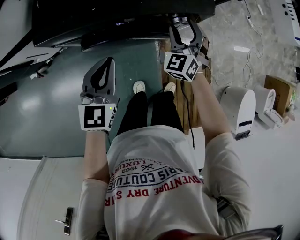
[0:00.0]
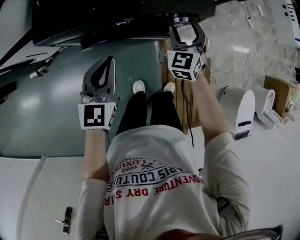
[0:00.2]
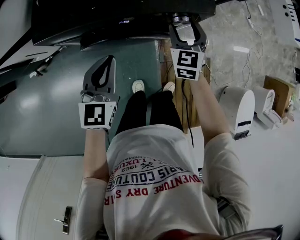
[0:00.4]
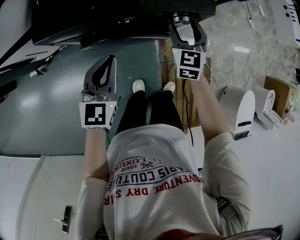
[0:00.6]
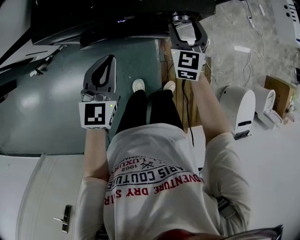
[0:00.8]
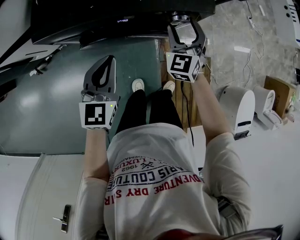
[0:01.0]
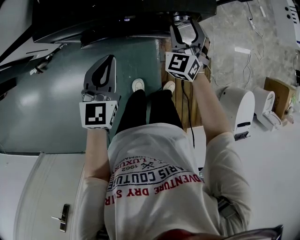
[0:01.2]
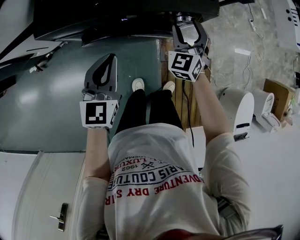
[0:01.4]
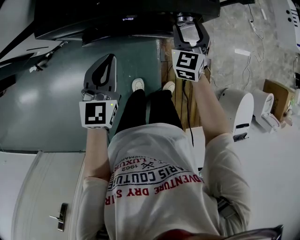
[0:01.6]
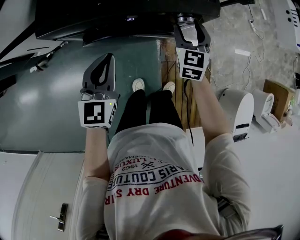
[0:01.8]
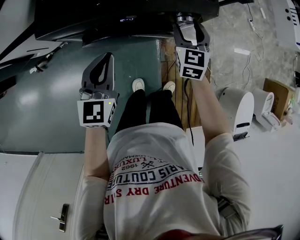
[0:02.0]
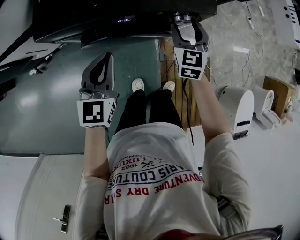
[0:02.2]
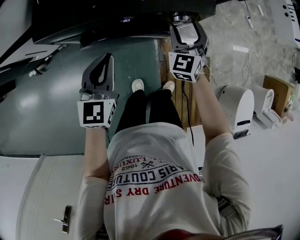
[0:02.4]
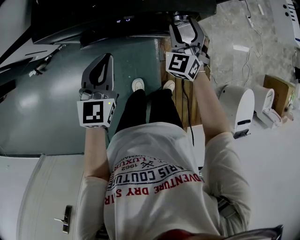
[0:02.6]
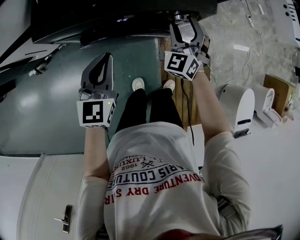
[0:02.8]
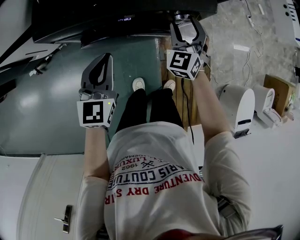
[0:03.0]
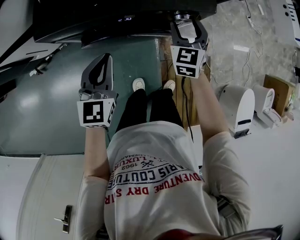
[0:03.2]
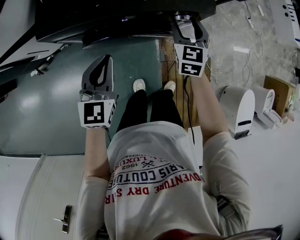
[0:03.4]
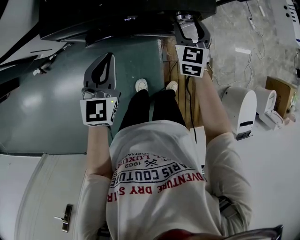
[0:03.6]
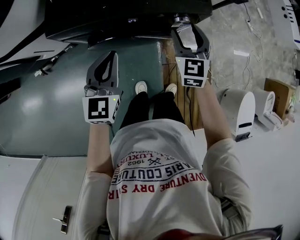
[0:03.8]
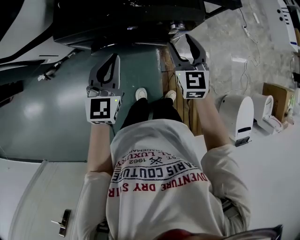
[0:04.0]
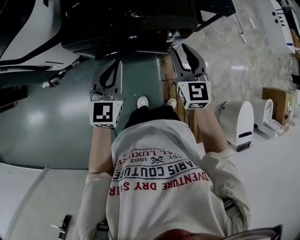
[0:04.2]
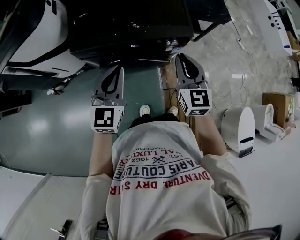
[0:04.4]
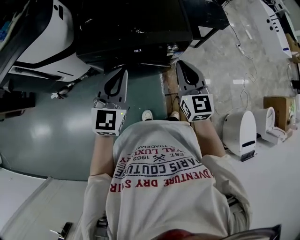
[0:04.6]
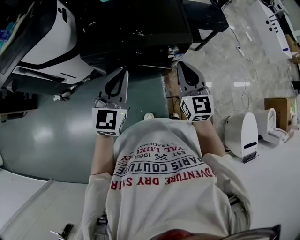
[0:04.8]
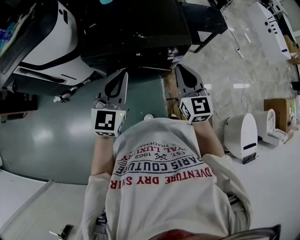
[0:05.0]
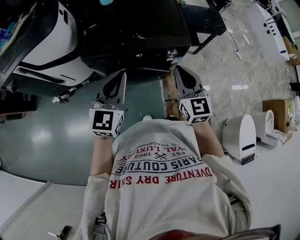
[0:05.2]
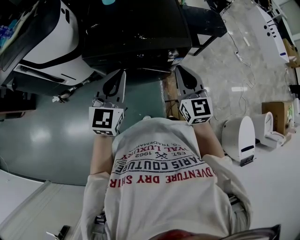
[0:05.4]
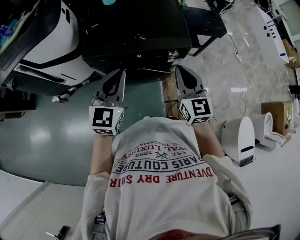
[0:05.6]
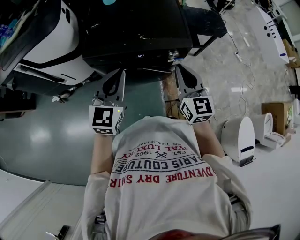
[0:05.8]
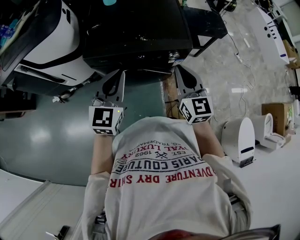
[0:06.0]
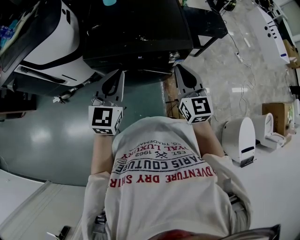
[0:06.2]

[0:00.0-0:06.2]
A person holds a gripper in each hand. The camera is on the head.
0:01.6 to 0:03.2: The grippers make only small movements.
0:03.2 to 0:04.6: The left gripper moves upward, approximately 20 cm. The right gripper shifts about 25 cm upward and backward, rotates approximately 20 degrees, and closes.
0:04.6 to 0:06.2: The grippers move only a little.

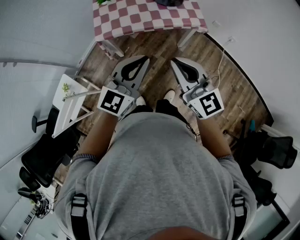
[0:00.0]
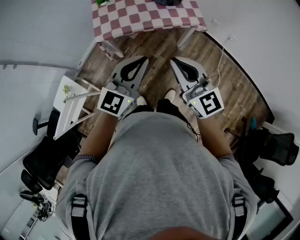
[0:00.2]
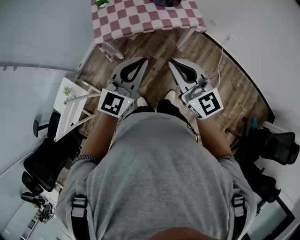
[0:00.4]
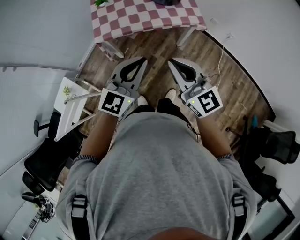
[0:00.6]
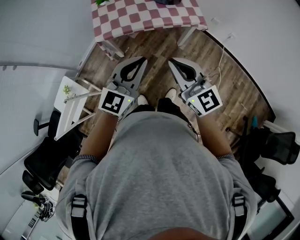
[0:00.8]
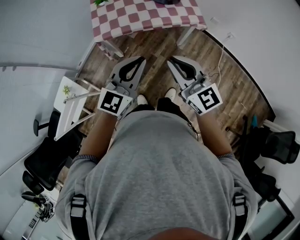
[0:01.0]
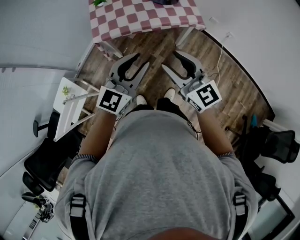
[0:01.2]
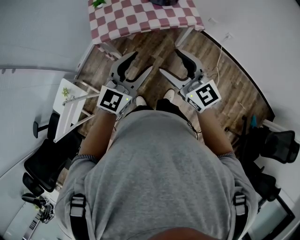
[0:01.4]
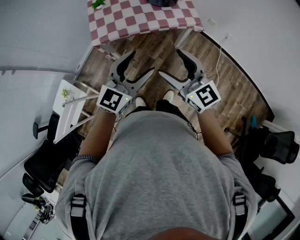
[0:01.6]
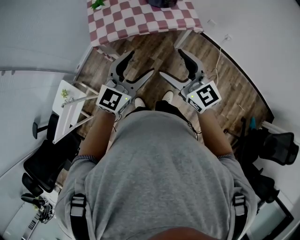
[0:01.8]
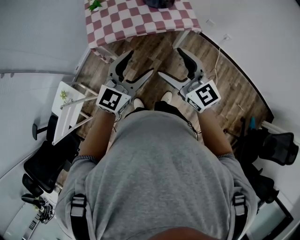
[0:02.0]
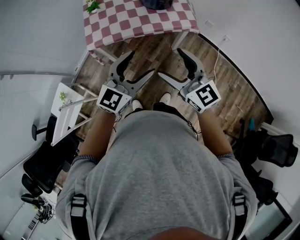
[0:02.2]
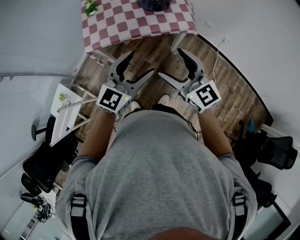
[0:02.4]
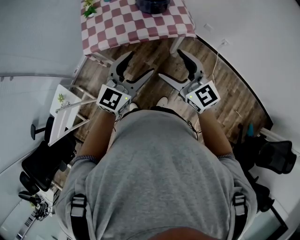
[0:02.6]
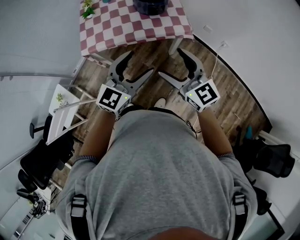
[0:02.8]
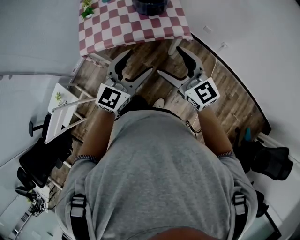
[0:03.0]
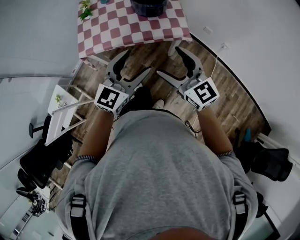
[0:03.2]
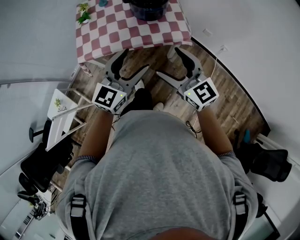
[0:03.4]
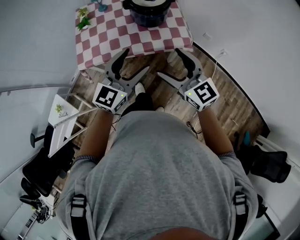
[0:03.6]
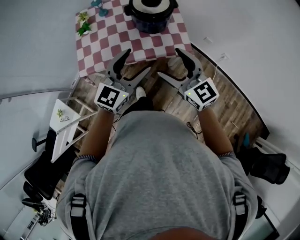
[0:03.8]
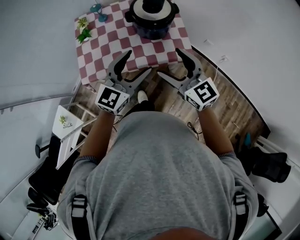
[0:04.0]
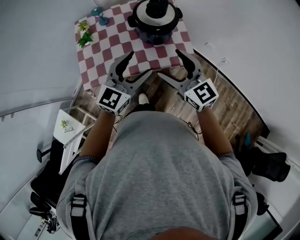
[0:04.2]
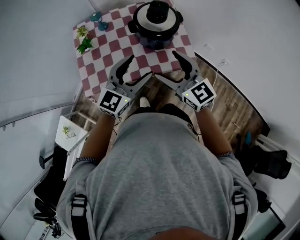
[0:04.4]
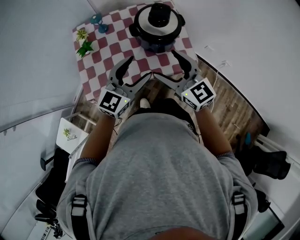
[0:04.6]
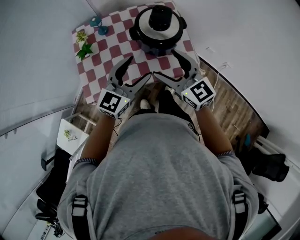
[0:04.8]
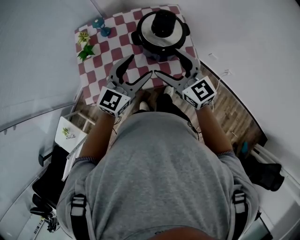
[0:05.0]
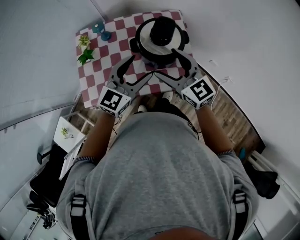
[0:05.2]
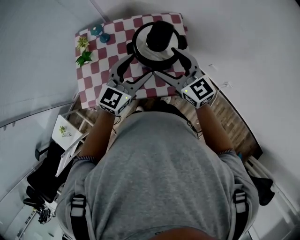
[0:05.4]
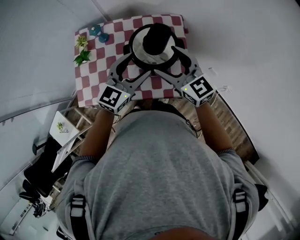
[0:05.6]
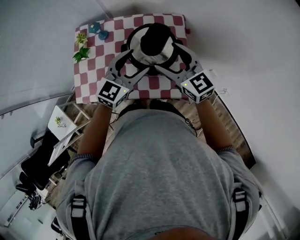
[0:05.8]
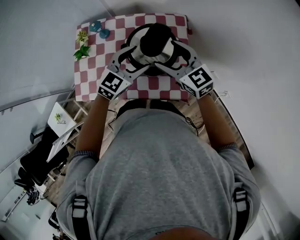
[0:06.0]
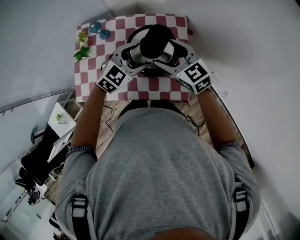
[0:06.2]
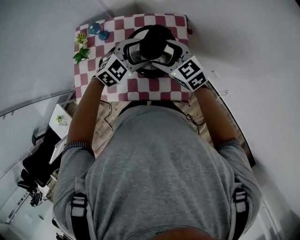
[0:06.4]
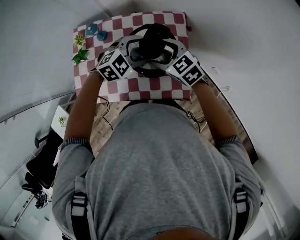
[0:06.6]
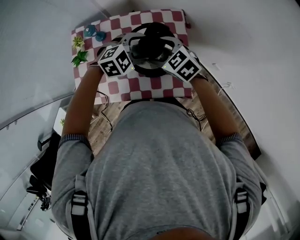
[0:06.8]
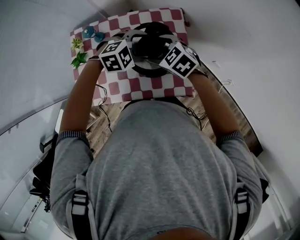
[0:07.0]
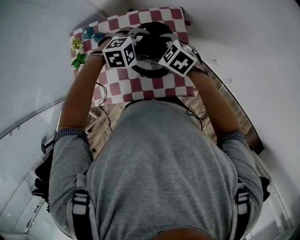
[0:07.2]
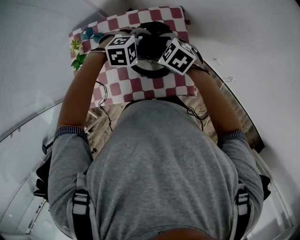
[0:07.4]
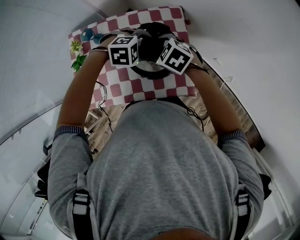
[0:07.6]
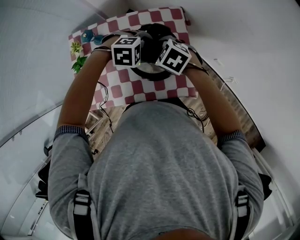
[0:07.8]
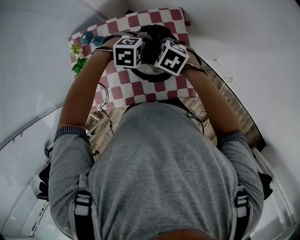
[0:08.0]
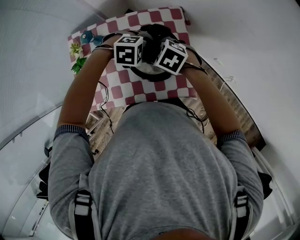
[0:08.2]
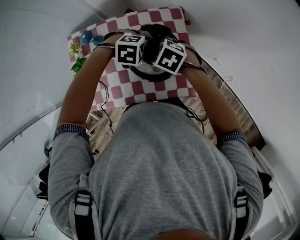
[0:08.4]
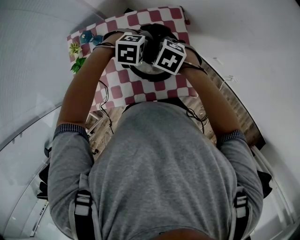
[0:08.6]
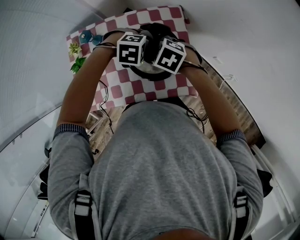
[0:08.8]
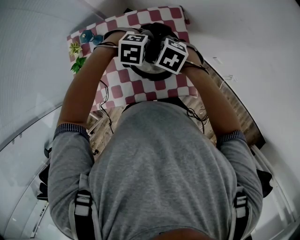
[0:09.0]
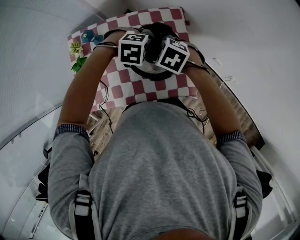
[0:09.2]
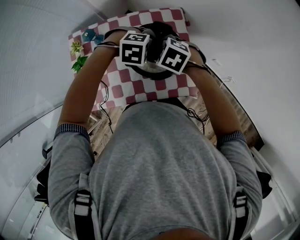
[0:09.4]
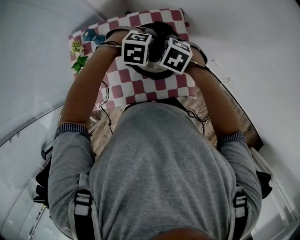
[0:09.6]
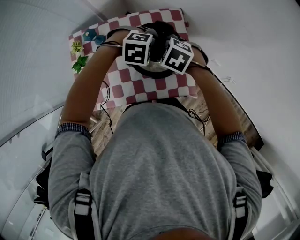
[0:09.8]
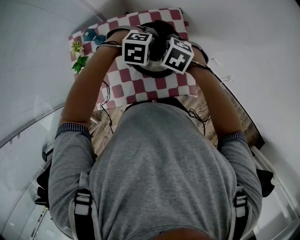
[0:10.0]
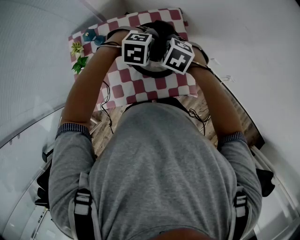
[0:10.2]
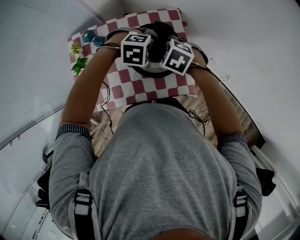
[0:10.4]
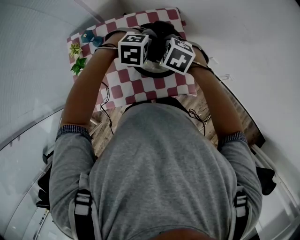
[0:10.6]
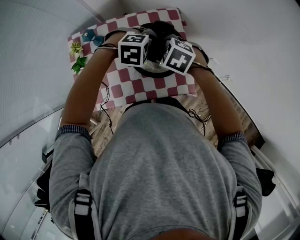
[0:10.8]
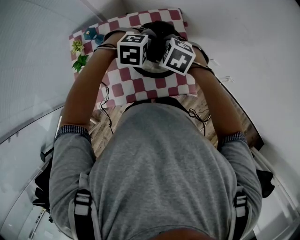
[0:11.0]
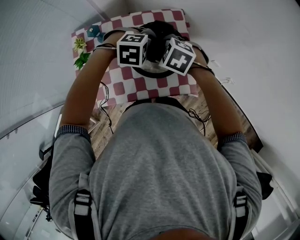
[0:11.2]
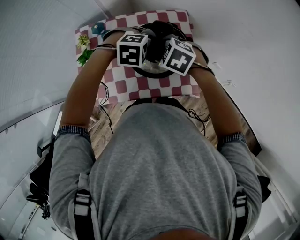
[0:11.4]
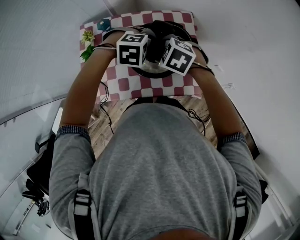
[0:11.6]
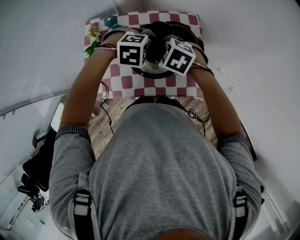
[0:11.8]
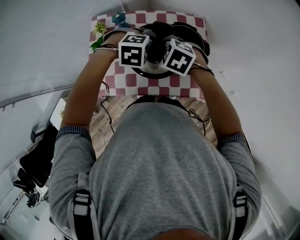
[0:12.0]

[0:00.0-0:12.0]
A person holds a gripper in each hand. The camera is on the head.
0:00.0 to 0:01.6: The right gripper opens its fingers. The left gripper opens its fingers.
0:01.6 to 0:03.0: Both grippers travel together to the right and forward, roughly 15 cm.
0:03.0 to 0:04.4: Both grippers move forward, some 25 cm.
0:04.4 to 0:06.0: The left gripper shifts about 25 cm forward and to the right, and changes its angle by about 20 degrees. Meanwhile the right gripper heads forward, covering approximately 25 cm.
0:06.0 to 0:07.6: The grippers both shift downward by about 10 cm. The right gripper tilts its fingers some 40 degrees downward, while the left gripper angles its fingers downward, by some 40 degrees.
0:07.6 to 0:10.4: The grippers make only small movements.
0:10.4 to 0:12.0: The right gripper shifts by about 15 cm. Meanwhile the left gripper changes place by about 15 cm.

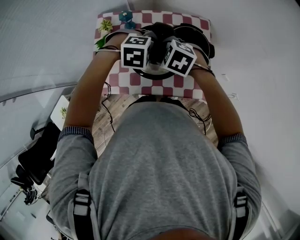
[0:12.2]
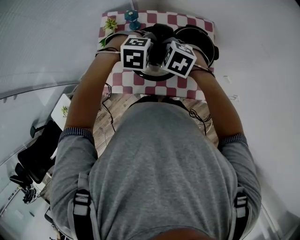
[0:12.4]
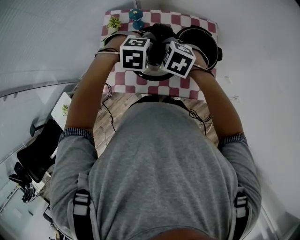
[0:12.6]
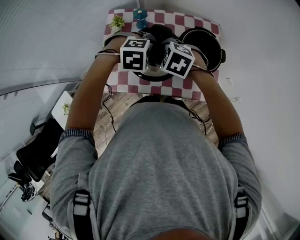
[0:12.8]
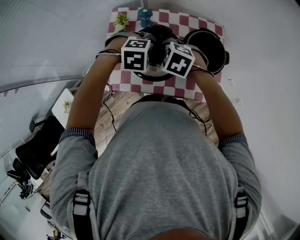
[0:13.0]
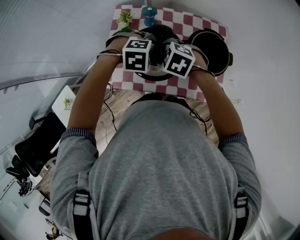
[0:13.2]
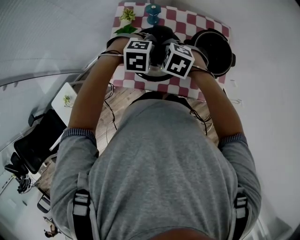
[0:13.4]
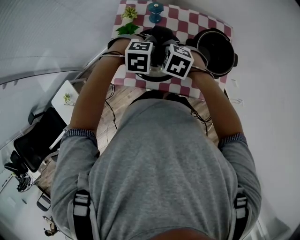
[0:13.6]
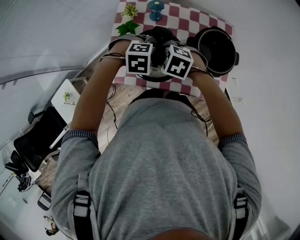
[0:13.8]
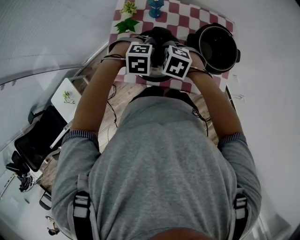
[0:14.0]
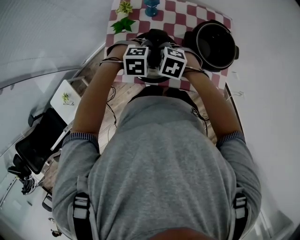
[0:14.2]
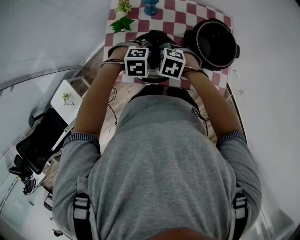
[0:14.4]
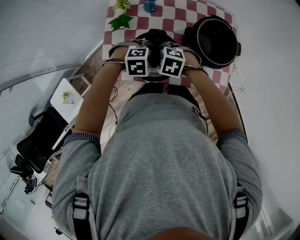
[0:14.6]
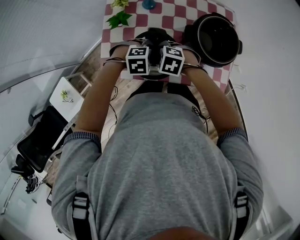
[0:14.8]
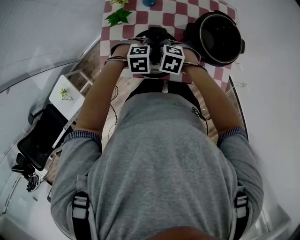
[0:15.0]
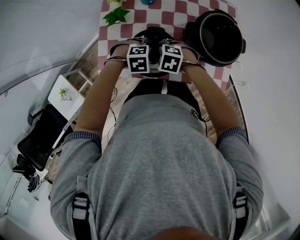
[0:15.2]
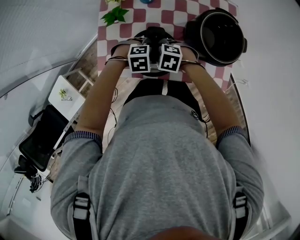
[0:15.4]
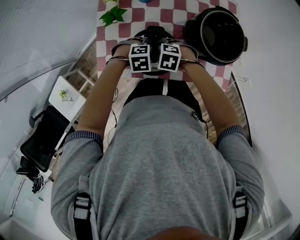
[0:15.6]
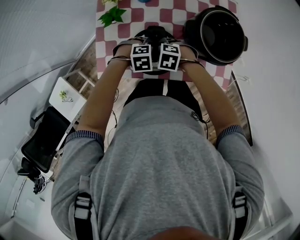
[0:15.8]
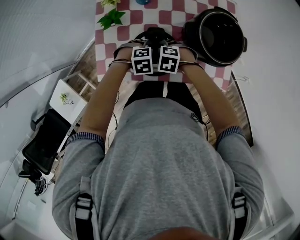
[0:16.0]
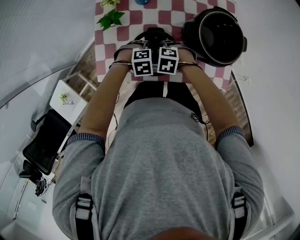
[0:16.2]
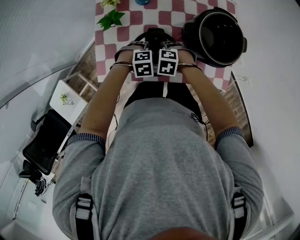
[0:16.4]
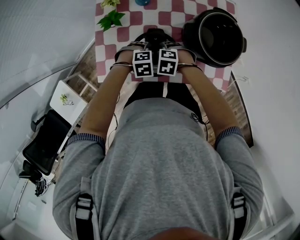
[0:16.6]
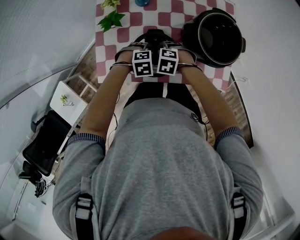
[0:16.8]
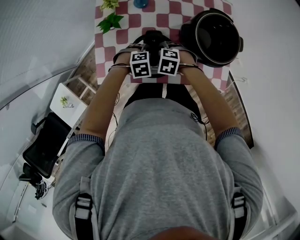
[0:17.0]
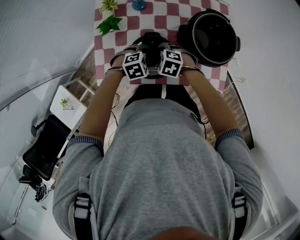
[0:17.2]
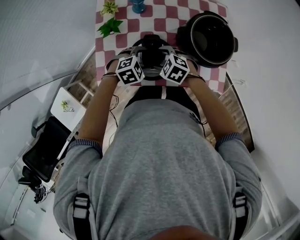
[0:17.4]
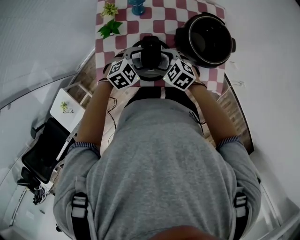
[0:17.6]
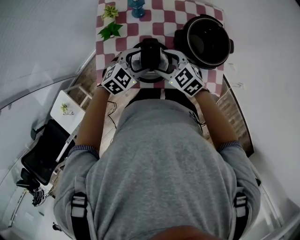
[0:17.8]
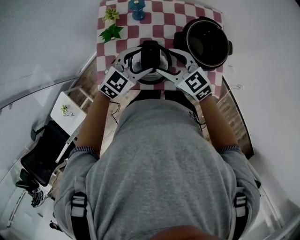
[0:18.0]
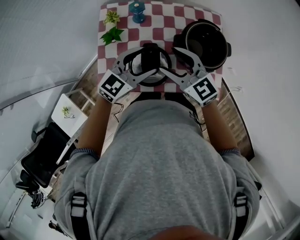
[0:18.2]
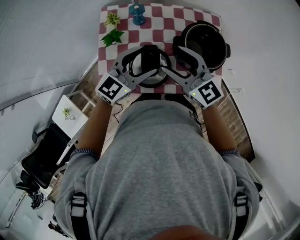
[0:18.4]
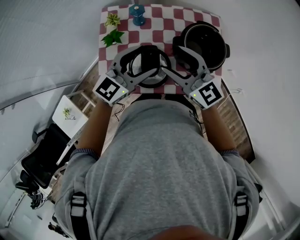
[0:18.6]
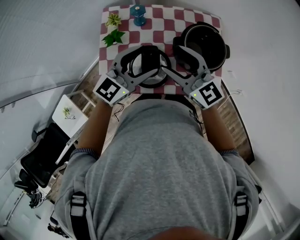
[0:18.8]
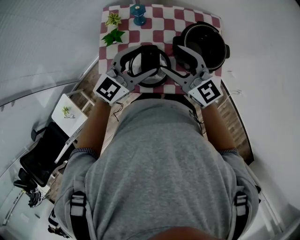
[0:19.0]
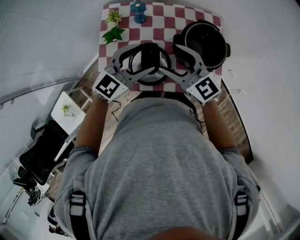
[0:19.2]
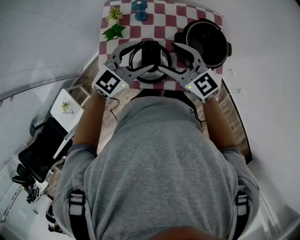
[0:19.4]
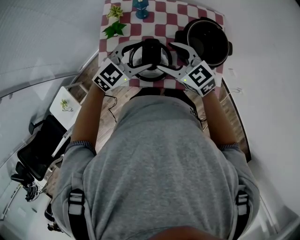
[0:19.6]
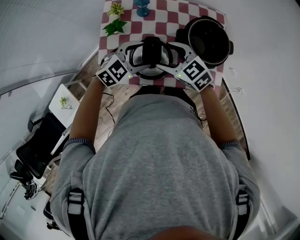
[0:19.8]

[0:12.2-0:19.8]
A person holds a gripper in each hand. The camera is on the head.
0:12.2 to 0:13.8: The left gripper shifts by about 15 cm, while the right gripper ends up approximately 15 cm from where it was.
0:13.8 to 0:15.2: Both grippers travel together downward, approximately 15 cm.
0:15.2 to 0:16.8: The left gripper moves downward, about 5 cm, while the right gripper changes place by some 5 cm.
0:16.8 to 0:18.2: The grippers both shift upward by approximately 25 cm. The right gripper points its fingers some 60 degrees further upward; the left gripper tilts its fingers some 60 degrees upward.
0:18.2 to 0:19.8: The two grippers go some 5 cm downward. The left gripper swivels some 20 degrees.
